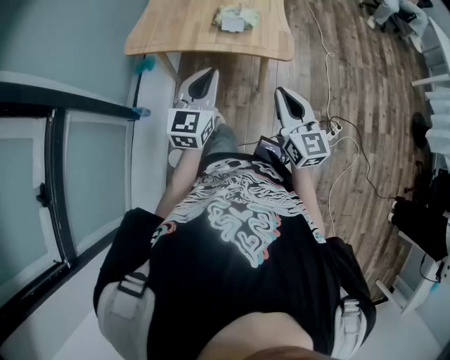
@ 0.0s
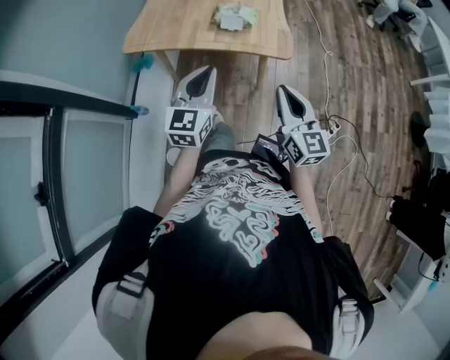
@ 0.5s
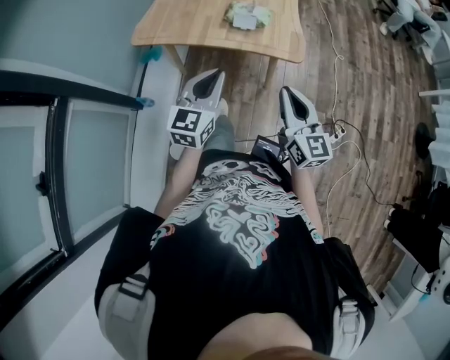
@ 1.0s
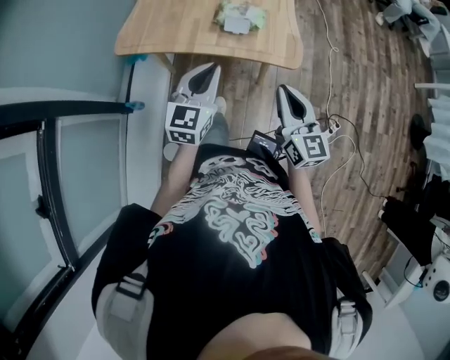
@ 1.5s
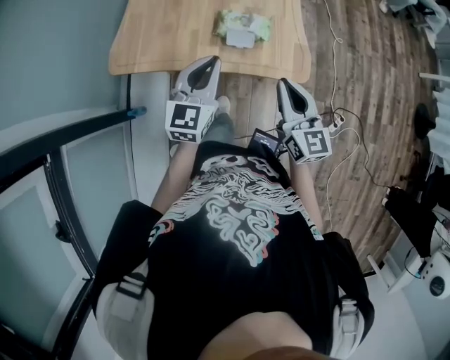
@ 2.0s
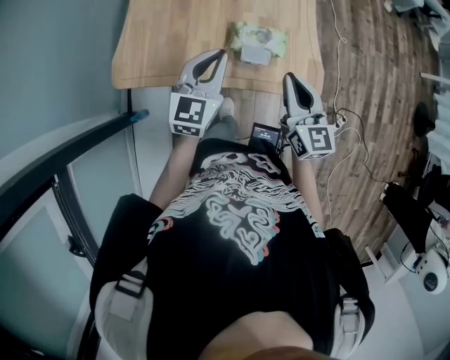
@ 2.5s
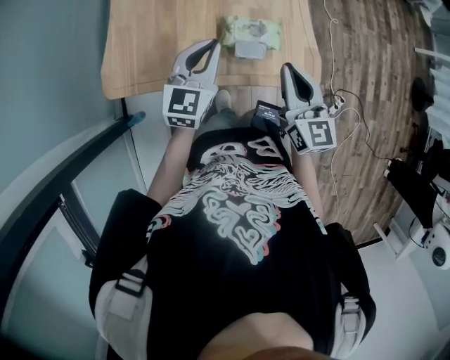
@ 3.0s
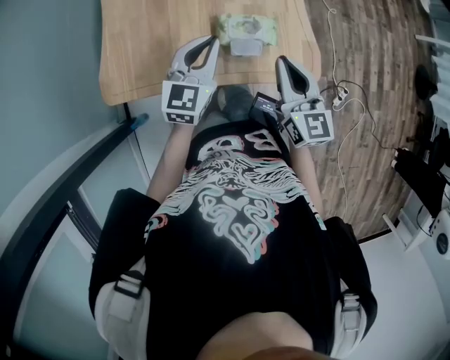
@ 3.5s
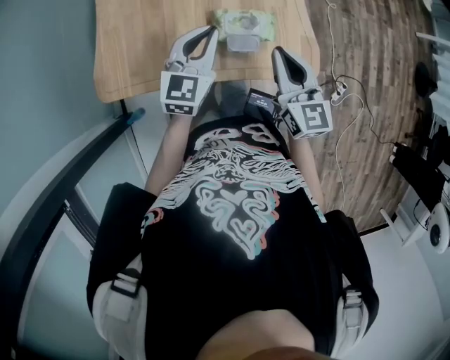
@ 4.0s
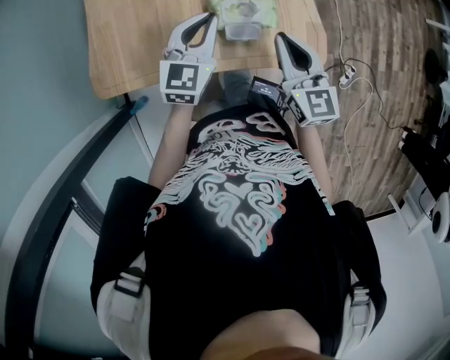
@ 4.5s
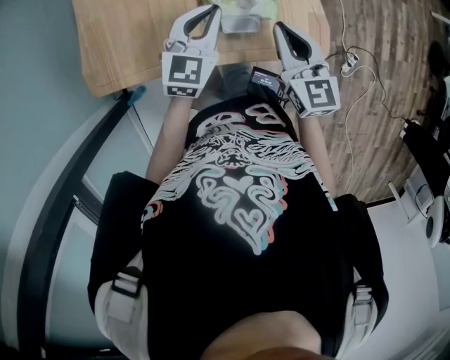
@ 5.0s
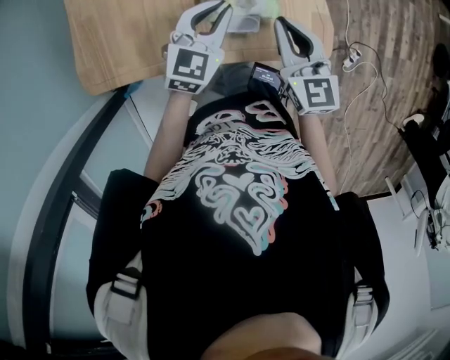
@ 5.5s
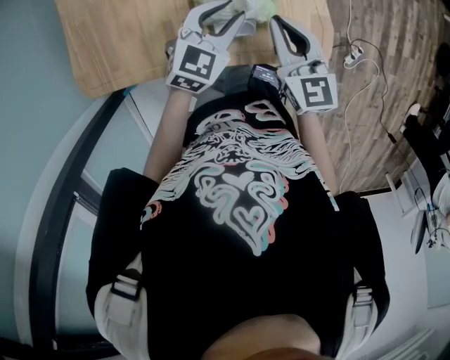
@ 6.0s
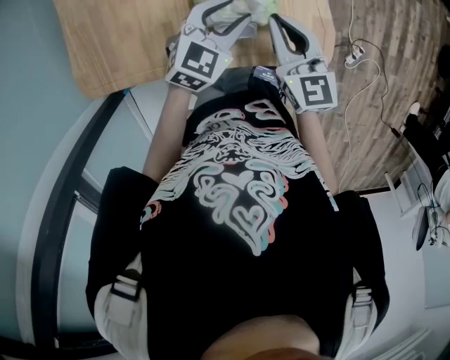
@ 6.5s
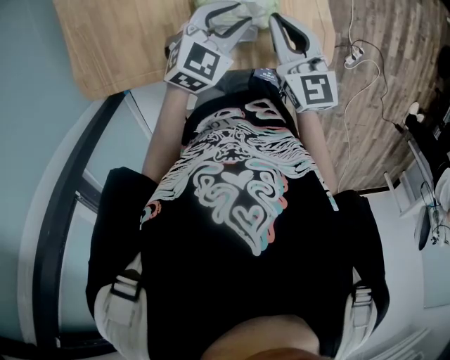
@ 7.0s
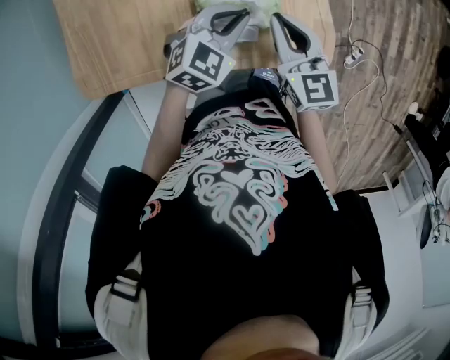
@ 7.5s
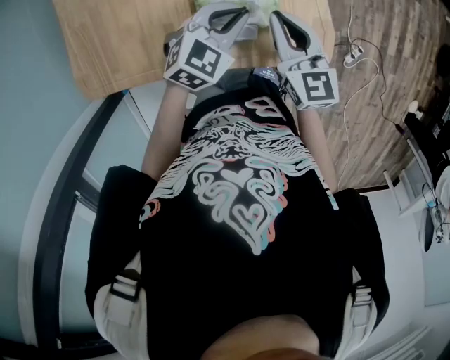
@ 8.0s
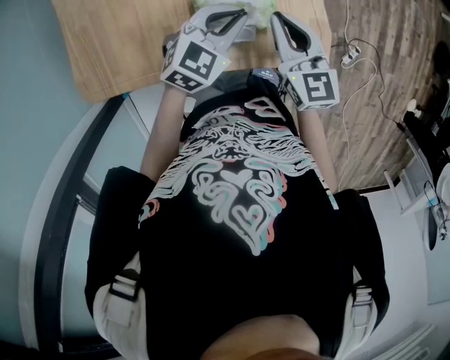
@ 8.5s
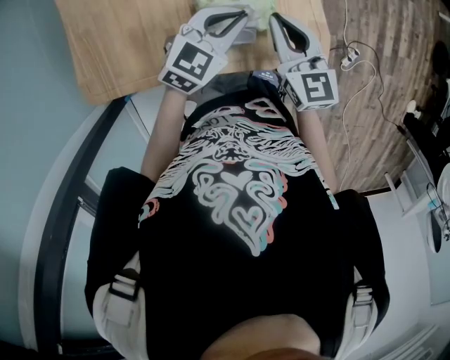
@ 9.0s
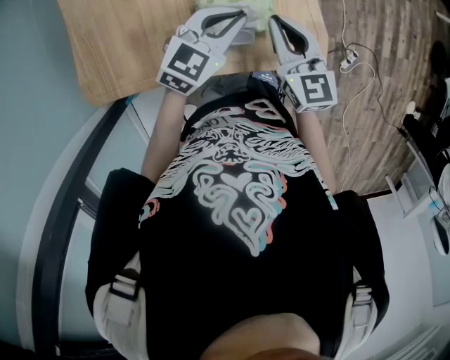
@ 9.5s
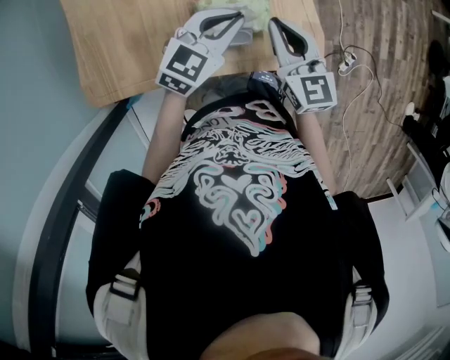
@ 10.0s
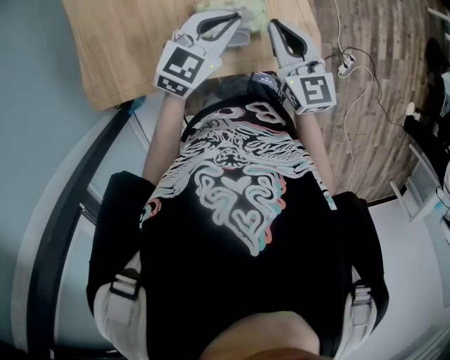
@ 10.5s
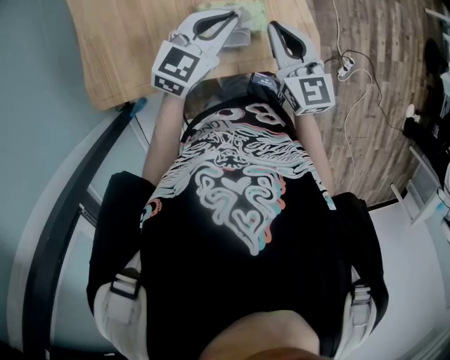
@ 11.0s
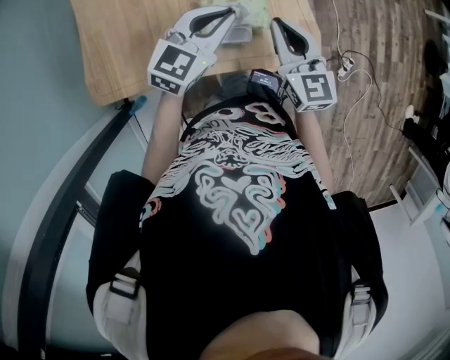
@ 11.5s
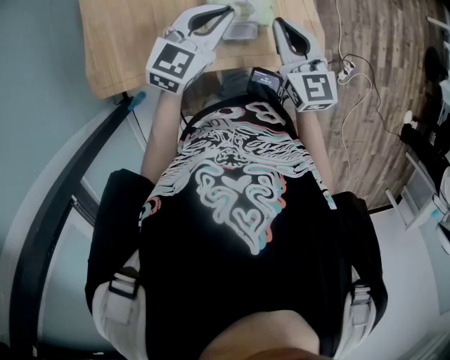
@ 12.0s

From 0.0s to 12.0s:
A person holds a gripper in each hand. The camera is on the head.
From 0.0s to 2.0s: The grippers both shift forward by roughly 25 cm.
From 2.0s to 4.0s: The left gripper moves forward, some 15 cm. The right gripper moves forward and to the left, some 15 cm.
From 4.0s to 6.0s: The right gripper is displaced downward and forward by approximately 10 cm, while the left gripper heads downward and to the right, covering roughly 15 cm, turns by roughly 20 degrees, and opens its fingers.
From 6.0s to 8.0s: The left gripper closes.
From 8.0s to 10.0s: The left gripper travels upward by some 5 cm.
From 10.0s to 12.0s: The left gripper moves some 5 cm.

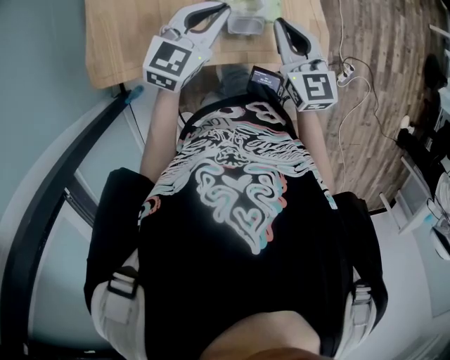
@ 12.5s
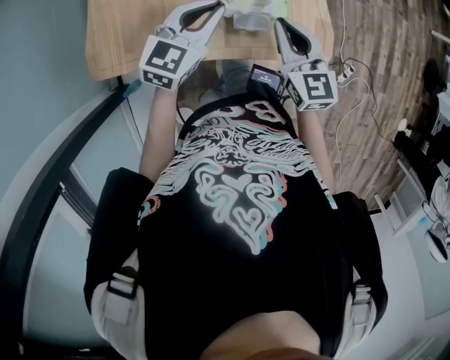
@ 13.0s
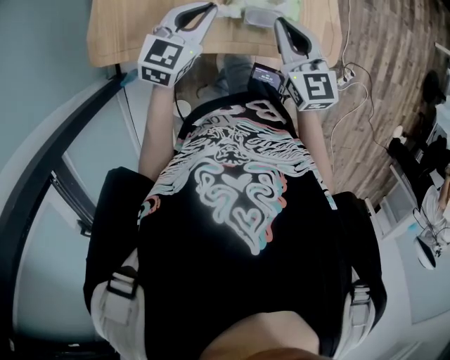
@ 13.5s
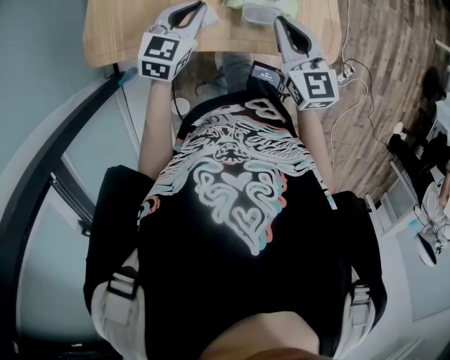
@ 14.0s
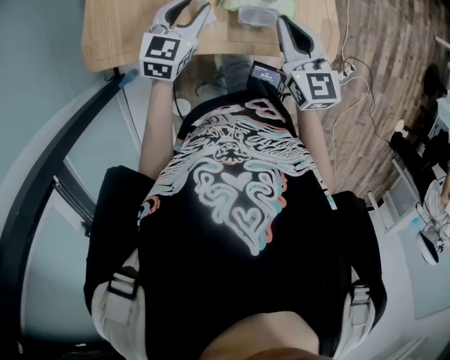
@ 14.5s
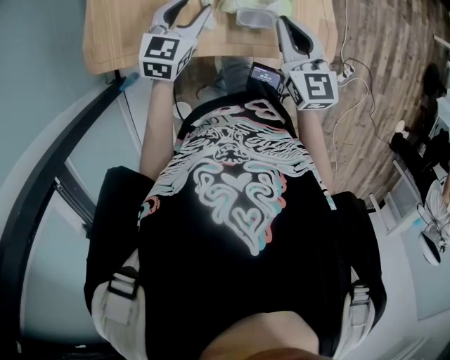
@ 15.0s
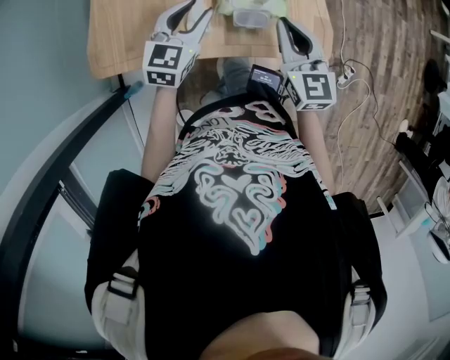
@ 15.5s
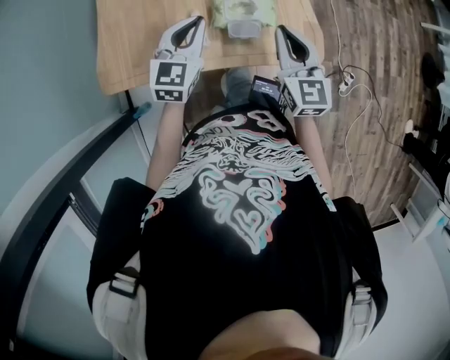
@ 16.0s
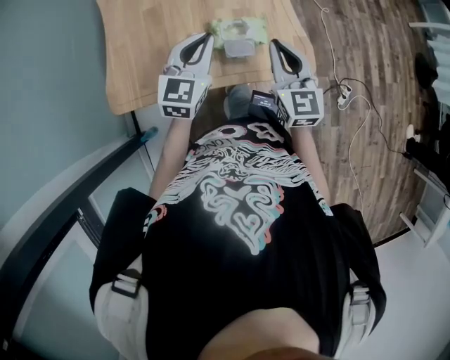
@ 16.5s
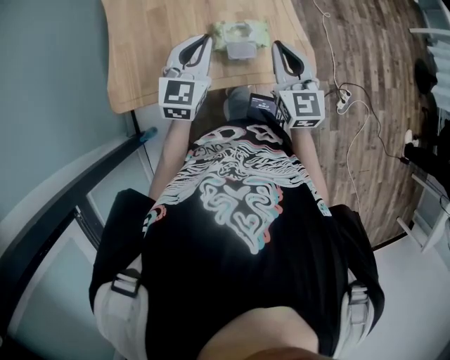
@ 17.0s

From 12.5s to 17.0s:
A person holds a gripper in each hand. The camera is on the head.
From 12.5s to 14.5s: The left gripper is displaced downward and to the left by some 10 cm, and opens.
From 14.5s to 17.0s: The right gripper travels upward by about 10 cm. Meanwhile the left gripper is displaced upward by roughly 15 cm, and closes its fingers.

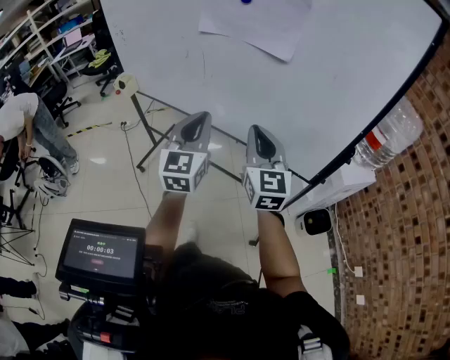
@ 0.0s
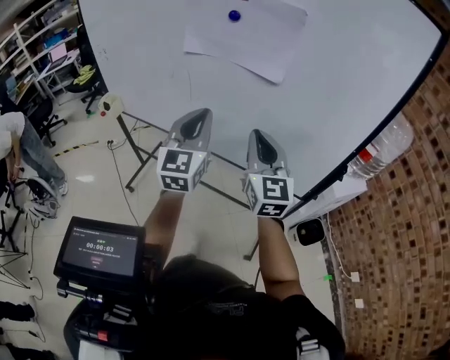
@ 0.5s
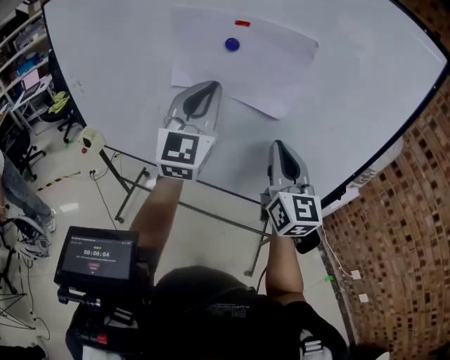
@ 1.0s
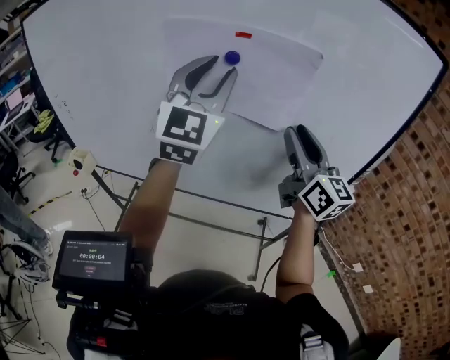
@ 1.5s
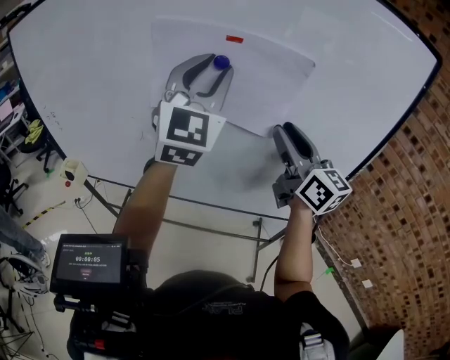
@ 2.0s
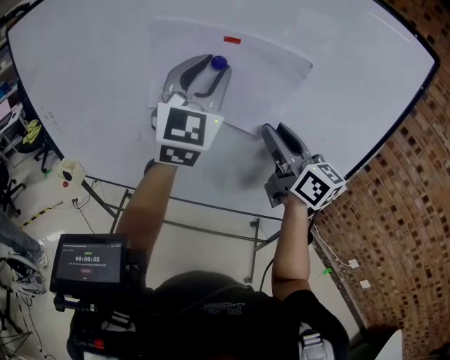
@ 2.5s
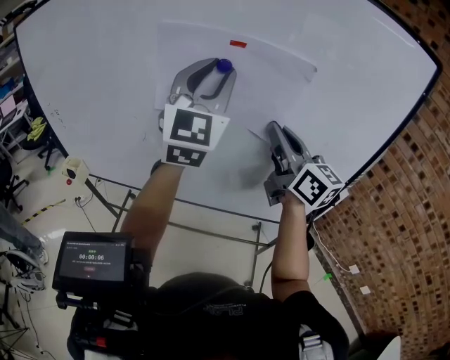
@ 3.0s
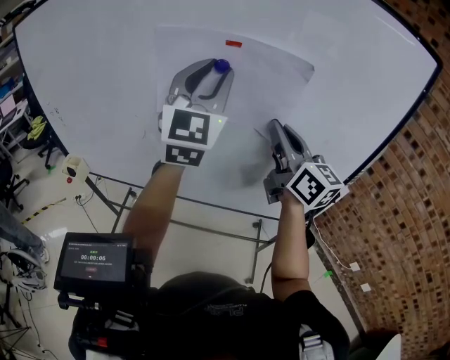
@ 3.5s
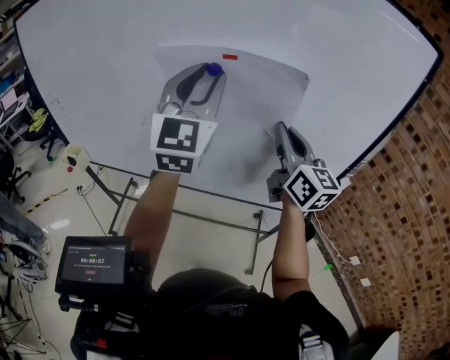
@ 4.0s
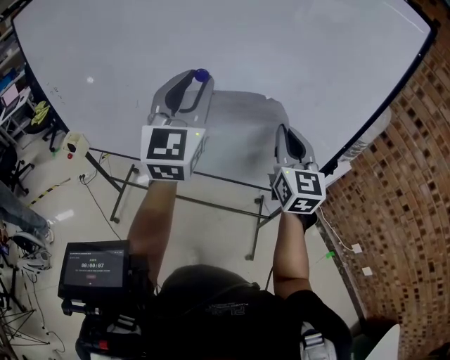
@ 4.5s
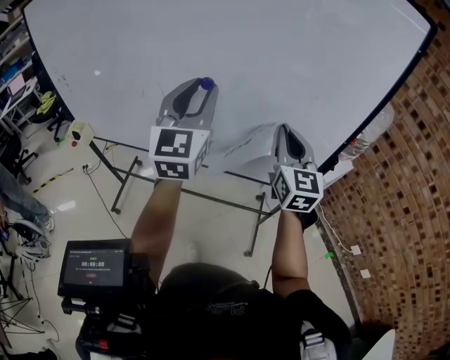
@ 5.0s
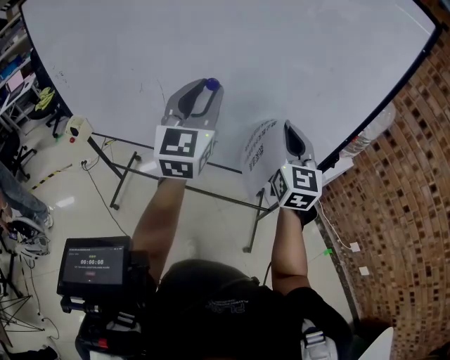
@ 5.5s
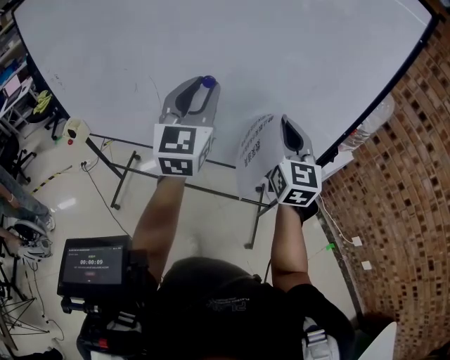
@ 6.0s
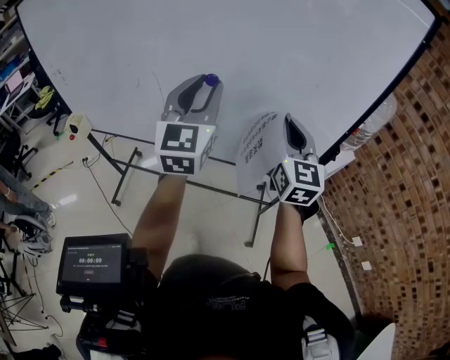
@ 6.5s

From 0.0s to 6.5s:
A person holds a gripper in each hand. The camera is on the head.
From 0.0s to 2.0s: The left gripper heads upward and forward, covering about 30 cm, swivels roughly 40 degrees, and opens its fingers; the right gripper heads forward and upward, covering approximately 20 cm, and opens up.
From 2.0s to 4.5s: The left gripper goes about 10 cm downward and backward. The right gripper travels downward by approximately 10 cm, turns by some 30 degrees, and closes its fingers.
From 4.5s to 6.5s: The left gripper is displaced downward by some 5 cm.

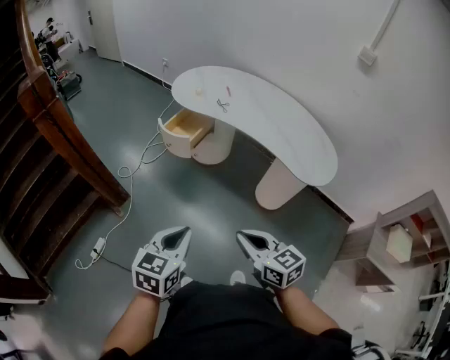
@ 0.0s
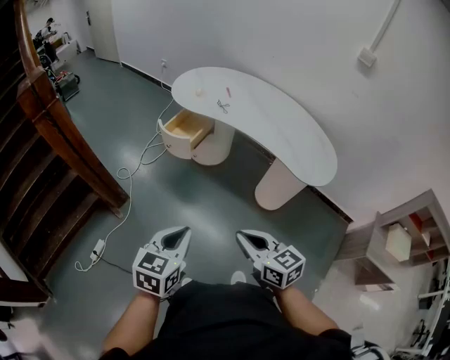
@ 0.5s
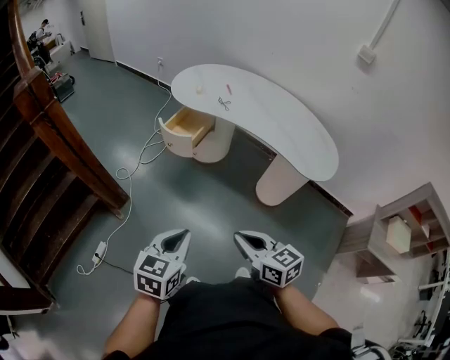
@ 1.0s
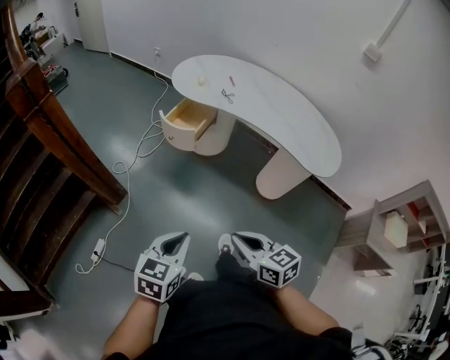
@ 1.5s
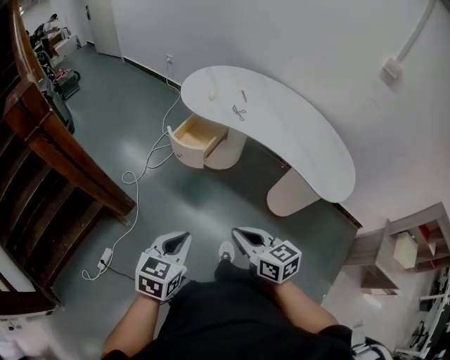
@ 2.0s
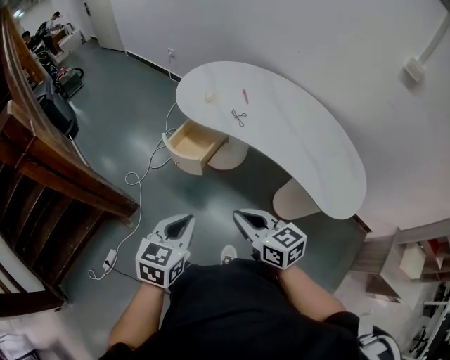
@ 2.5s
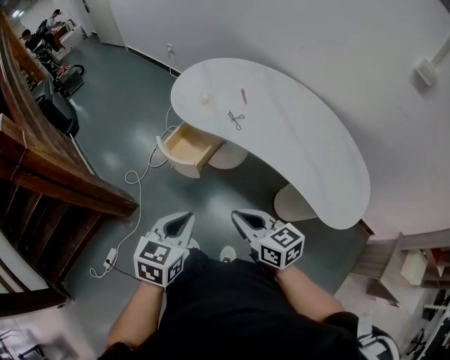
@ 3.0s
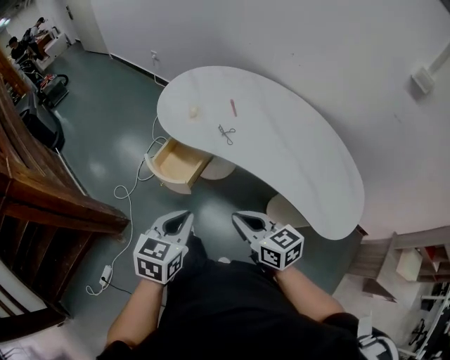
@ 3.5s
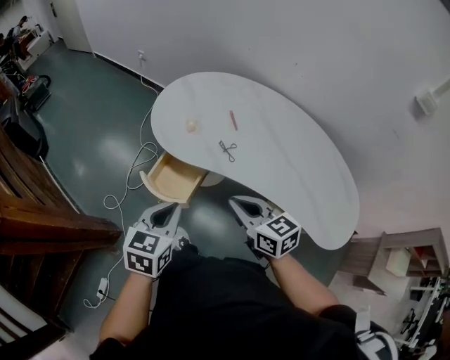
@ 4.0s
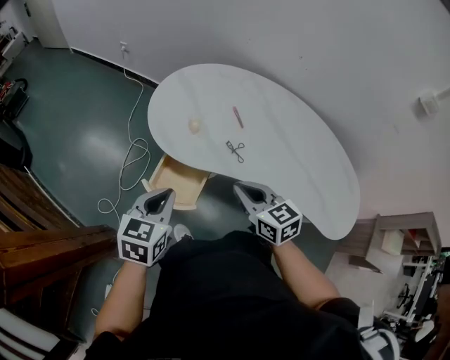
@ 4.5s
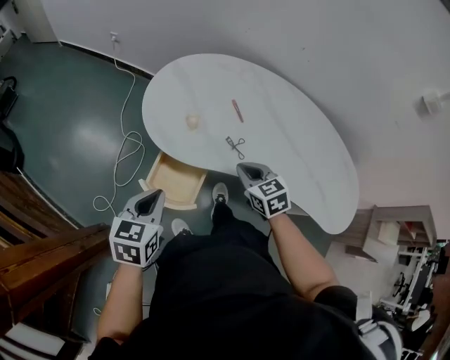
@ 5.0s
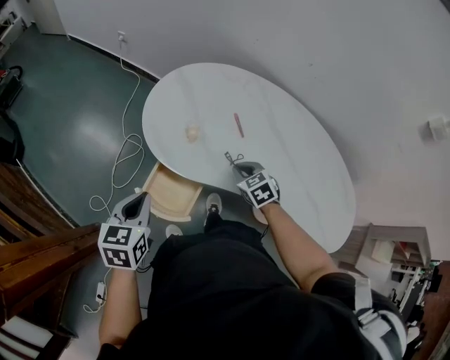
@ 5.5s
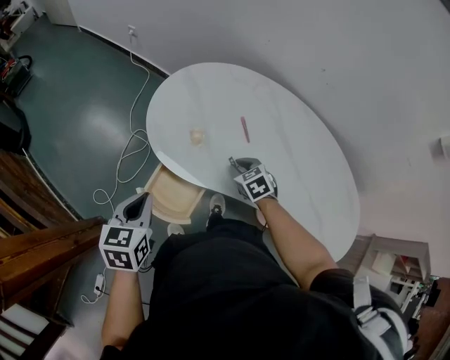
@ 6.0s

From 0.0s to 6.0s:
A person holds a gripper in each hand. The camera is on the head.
From 0.0s to 2.0s: The grippers stay close to where they were, moving slightly.
From 2.0s to 4.0s: The two grippers go some 40 cm forward.
From 4.0s to 6.0s: The right gripper travels forward and downward by about 30 cm, and tips its fingers downward by about 30 degrees. Meanwhile the left gripper is displaced forward and to the left by some 20 cm.
